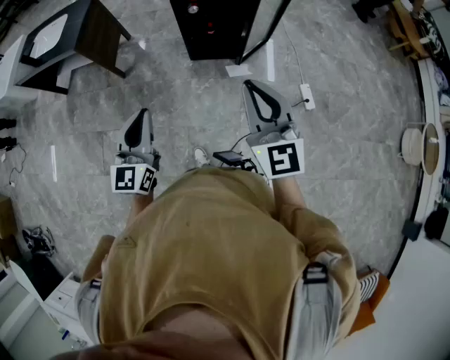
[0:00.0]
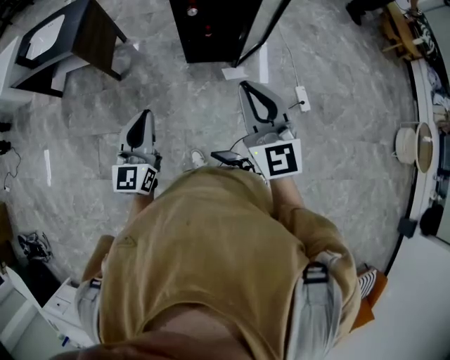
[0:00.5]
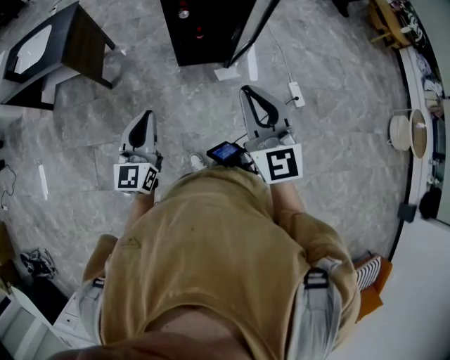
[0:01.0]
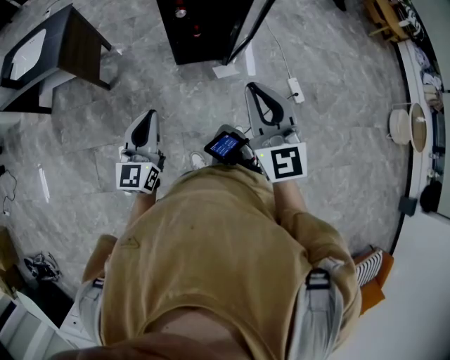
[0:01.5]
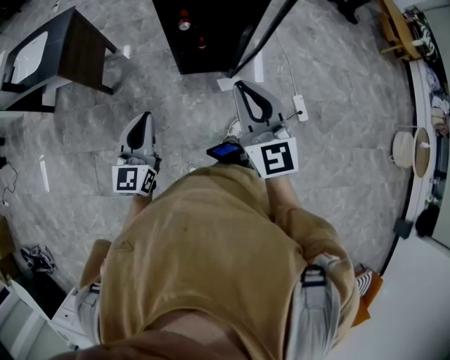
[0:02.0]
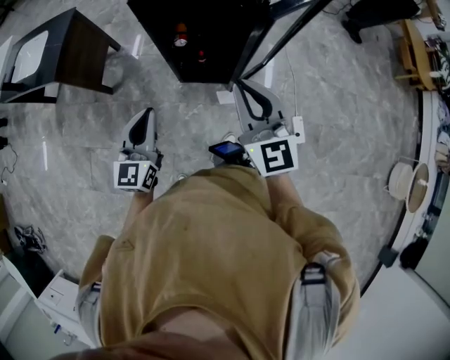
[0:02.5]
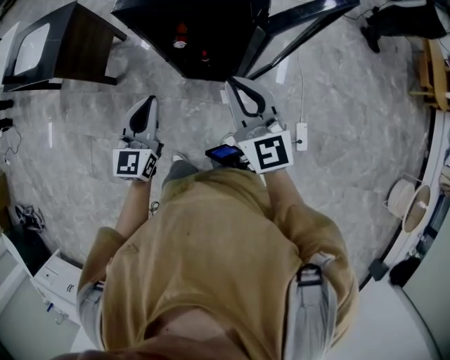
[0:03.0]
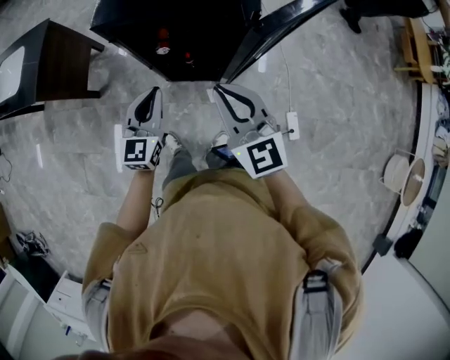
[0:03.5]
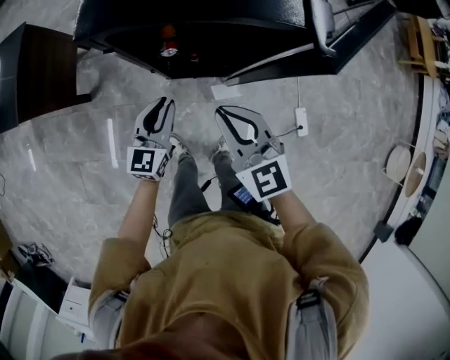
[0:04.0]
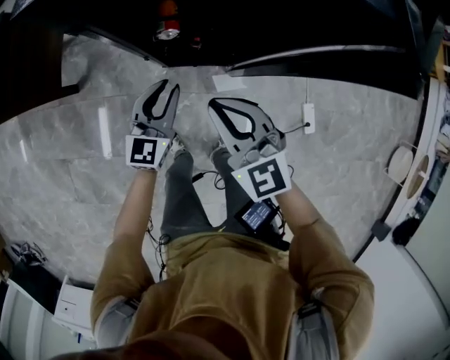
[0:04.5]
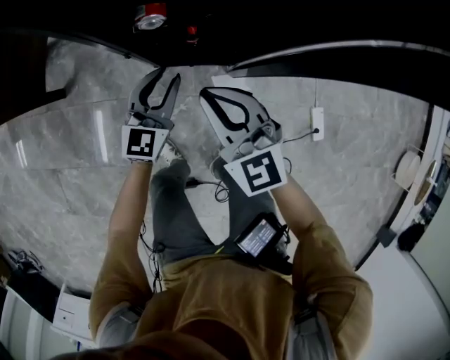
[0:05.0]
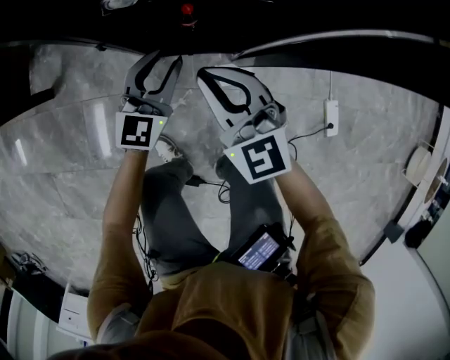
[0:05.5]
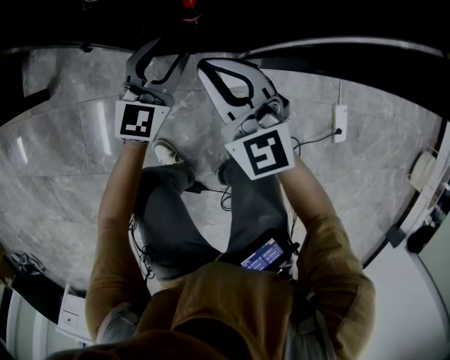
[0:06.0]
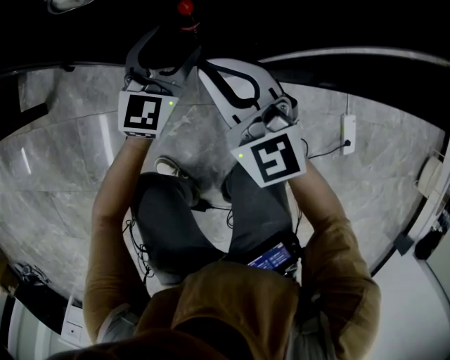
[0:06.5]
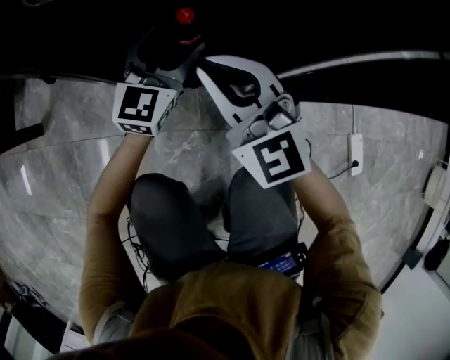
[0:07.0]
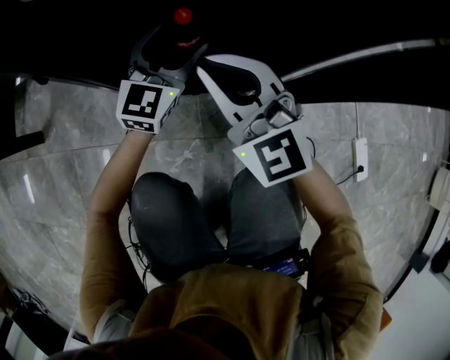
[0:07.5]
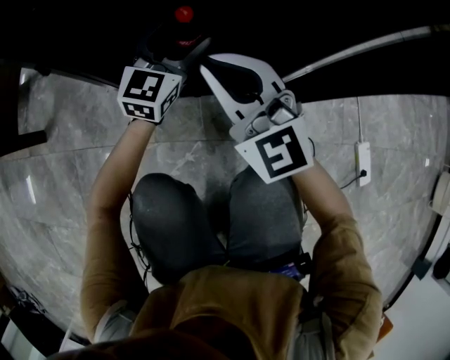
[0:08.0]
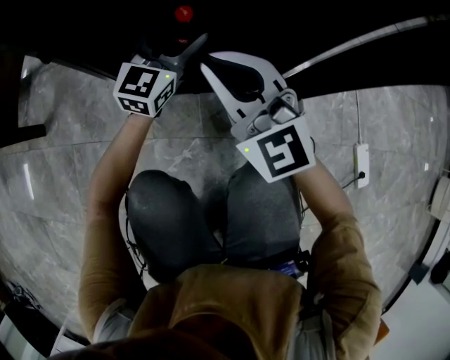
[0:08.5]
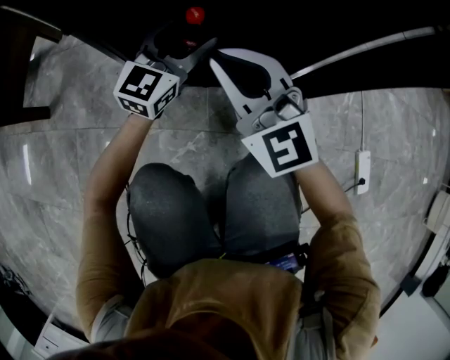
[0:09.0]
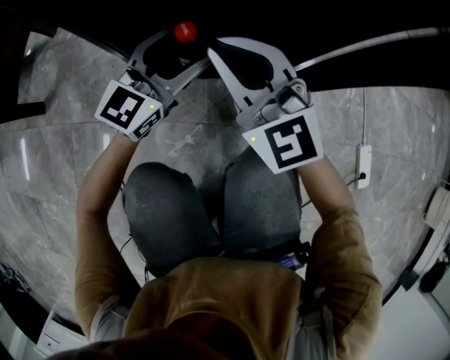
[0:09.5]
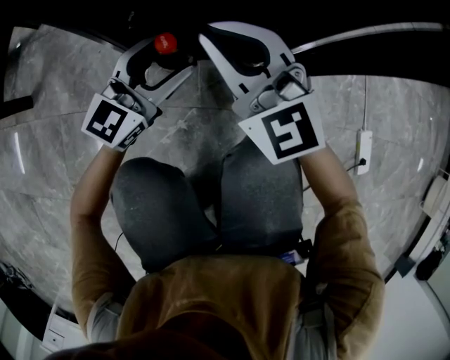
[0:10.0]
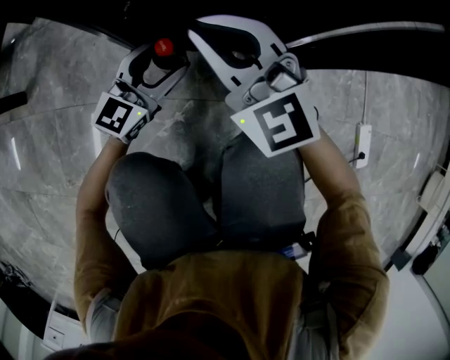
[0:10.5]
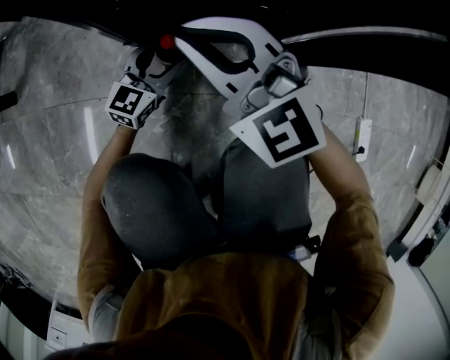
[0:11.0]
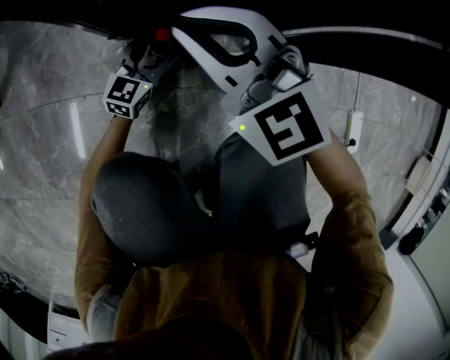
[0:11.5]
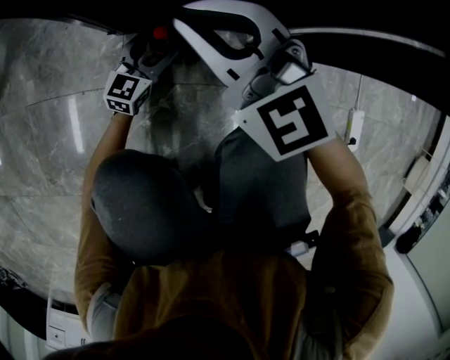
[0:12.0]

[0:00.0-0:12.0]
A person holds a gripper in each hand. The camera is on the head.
0:00.0 to 0:02.0: Both grippers travel together forward, approximately 20 cm.
0:02.0 to 0:04.0: The two grippers go about 40 cm forward and downward. The right gripper rotates roughly 30 degrees.
0:04.0 to 0:06.0: Both grippers travel together downward, about 40 cm. The left gripper opens.
0:06.0 to 0:08.0: The right gripper heads downward, covering roughly 10 cm. Meanwhile the left gripper goes about 15 cm downward and forward, and opens its fingers.
0:08.0 to 0:10.0: The left gripper goes some 15 cm backward.
0:10.0 to 0:12.0: The right gripper shifts roughly 5 cm downward, while the left gripper travels downward by about 25 cm.

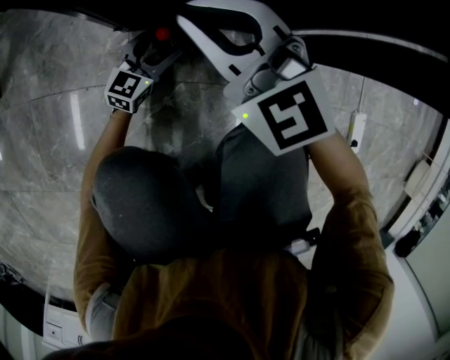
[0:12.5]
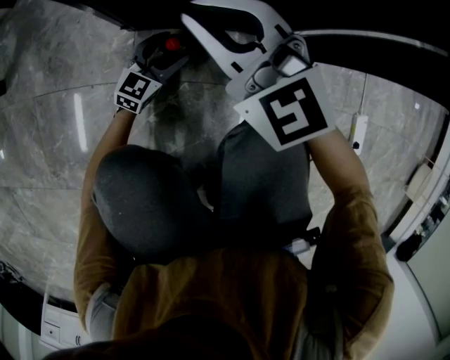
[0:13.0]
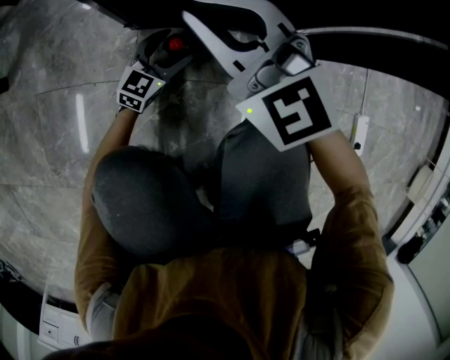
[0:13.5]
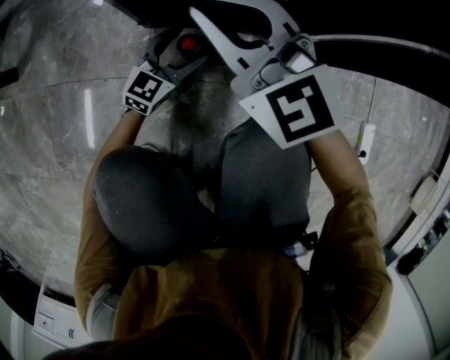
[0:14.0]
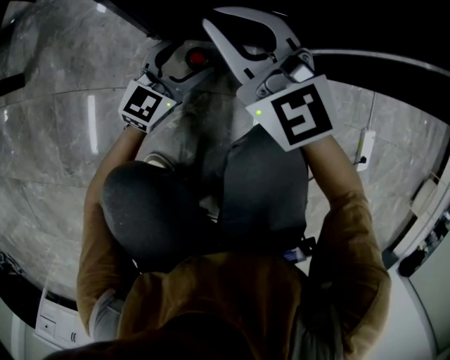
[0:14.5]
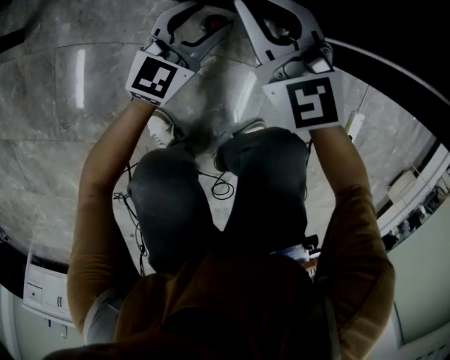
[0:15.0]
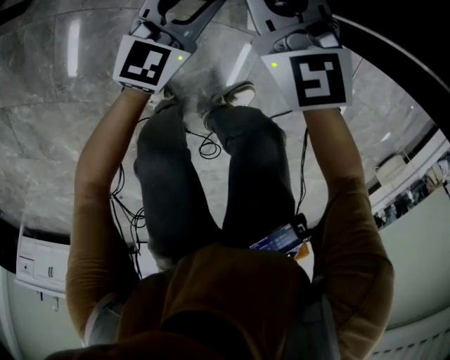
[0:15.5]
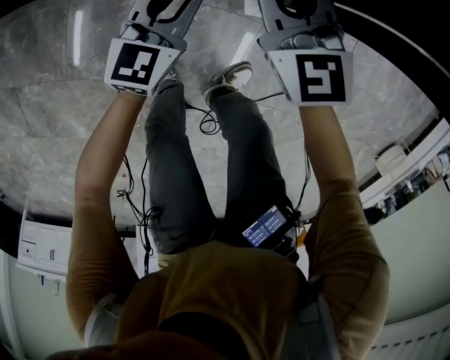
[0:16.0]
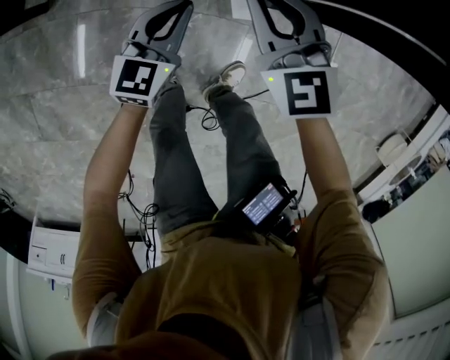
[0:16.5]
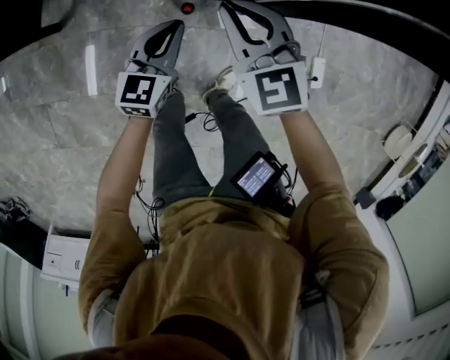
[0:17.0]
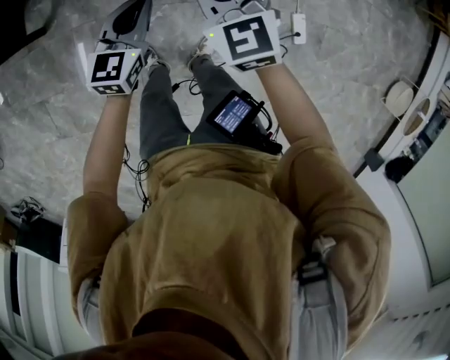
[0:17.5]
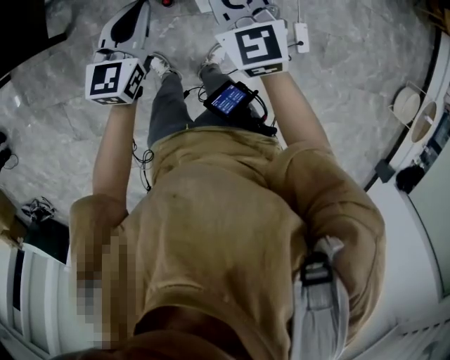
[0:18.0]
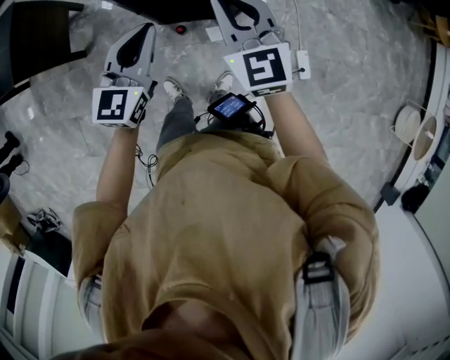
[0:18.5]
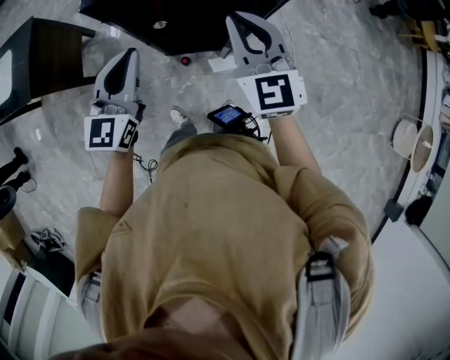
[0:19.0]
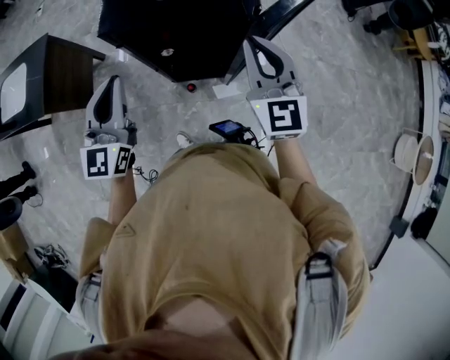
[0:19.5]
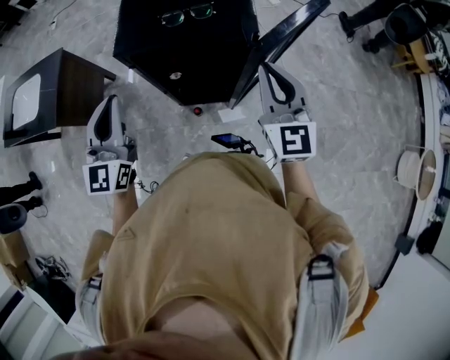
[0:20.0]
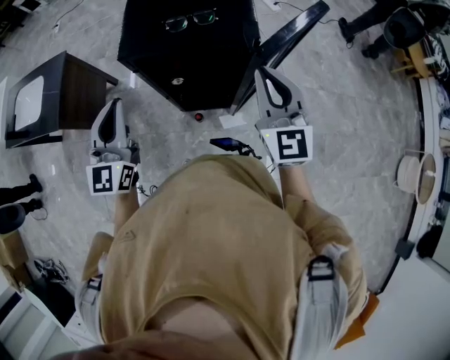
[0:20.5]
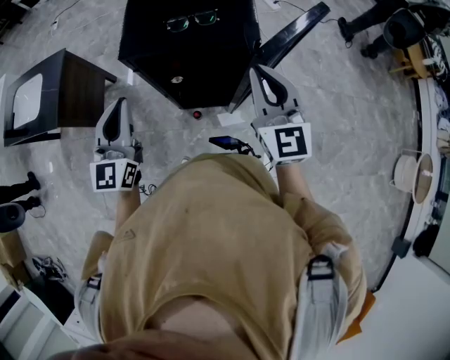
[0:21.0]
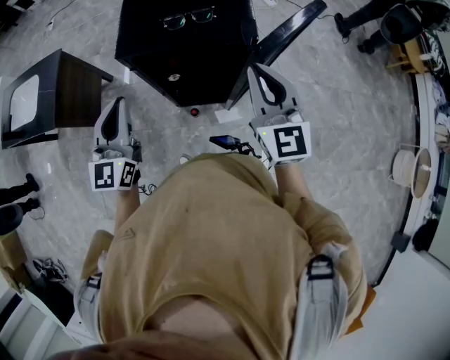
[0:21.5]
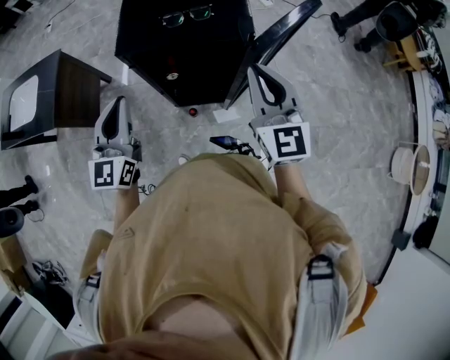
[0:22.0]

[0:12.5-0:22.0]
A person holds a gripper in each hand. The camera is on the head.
0:12.5 to 0:14.5: The left gripper moves upward, some 10 cm.
0:14.5 to 0:16.5: The grippers both shift upward by roughly 30 cm. The left gripper swivels approximately 20 degrees, and closes.
0:16.5 to 0:18.0: The two grippers go about 35 cm upward.
0:18.0 to 0:20.0: The right gripper moves upward, approximately 25 cm, and swivels some 20 degrees; the left gripper travels upward and to the left by some 35 cm, and swivels approximately 30 degrees.
0:20.0 to 0:22.0: The grippers move only a little.

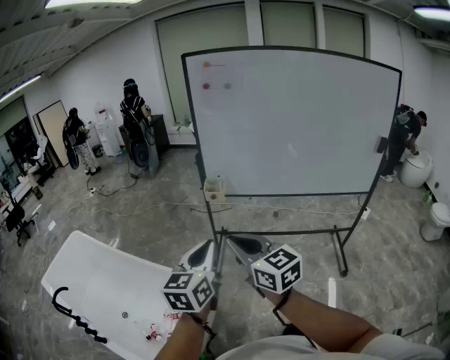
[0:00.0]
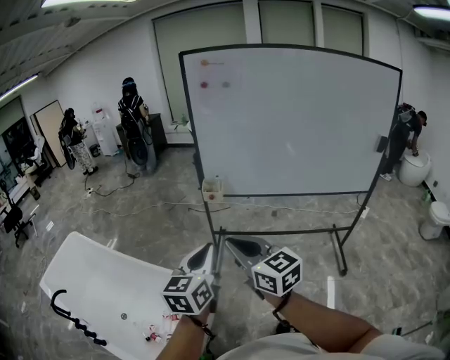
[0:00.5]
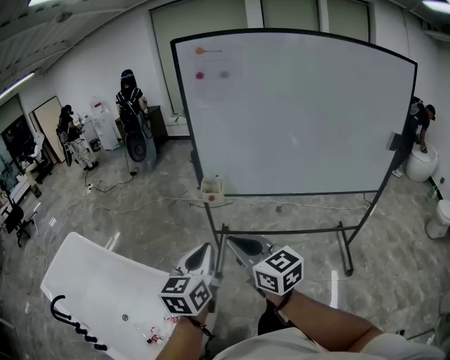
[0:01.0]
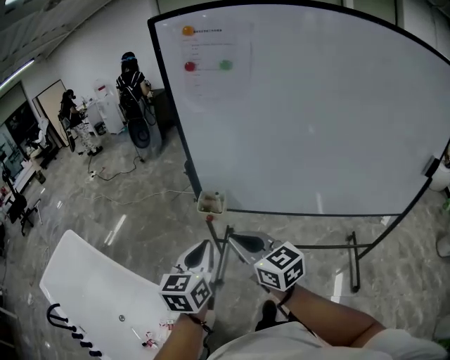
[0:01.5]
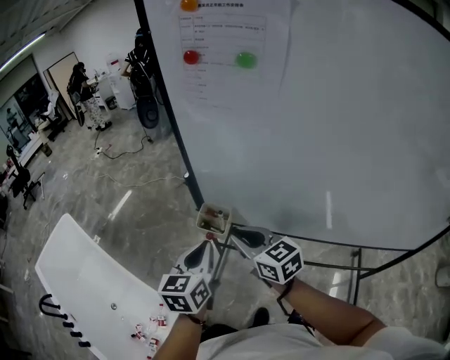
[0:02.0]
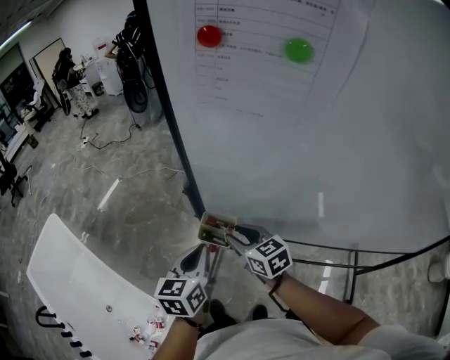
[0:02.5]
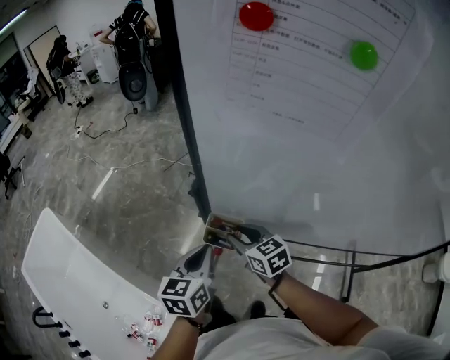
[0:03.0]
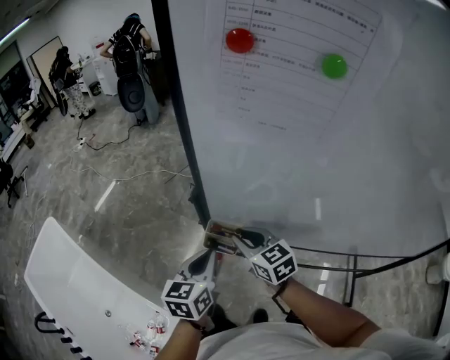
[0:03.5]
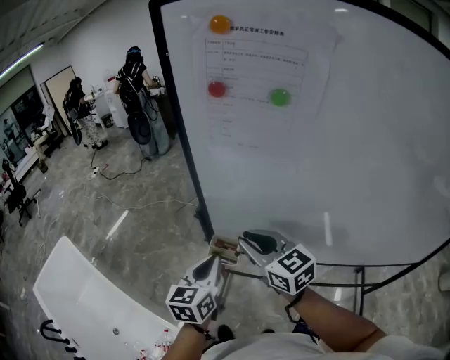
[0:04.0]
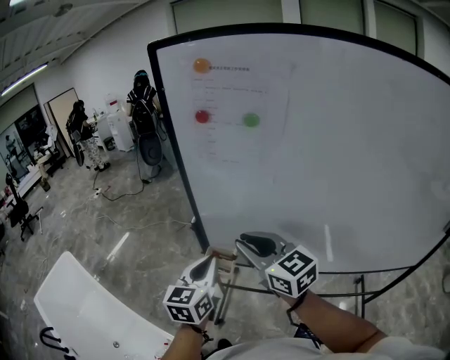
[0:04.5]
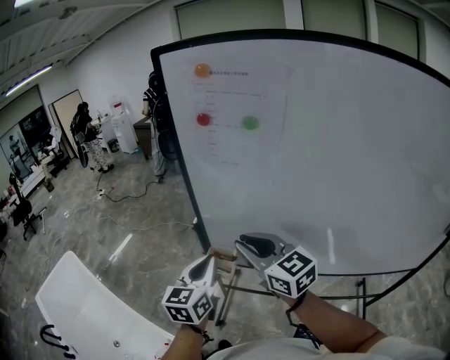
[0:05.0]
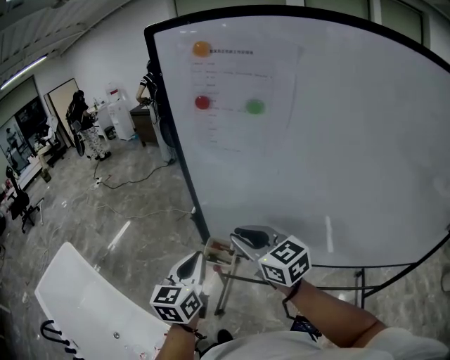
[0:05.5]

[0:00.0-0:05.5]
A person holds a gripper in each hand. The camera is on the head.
0:00.0 to 0:02.0: Both grippers are carried forward, roughly 50 cm.
0:02.0 to 0:03.5: The two grippers go roughly 15 cm forward and downward.
0:03.5 to 0:05.5: The left gripper is displaced upward and backward by some 15 cm, while the right gripper shifts some 20 cm upward and backward.
